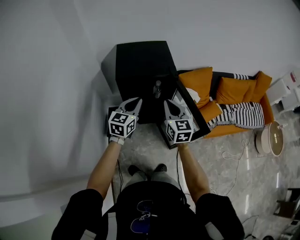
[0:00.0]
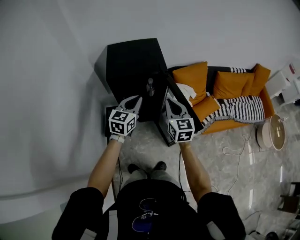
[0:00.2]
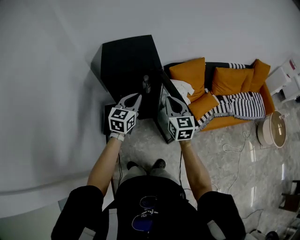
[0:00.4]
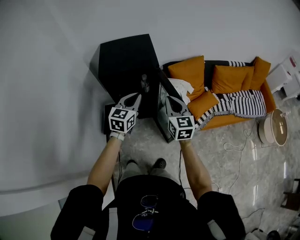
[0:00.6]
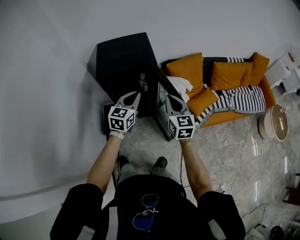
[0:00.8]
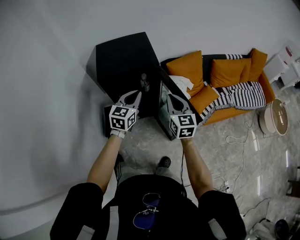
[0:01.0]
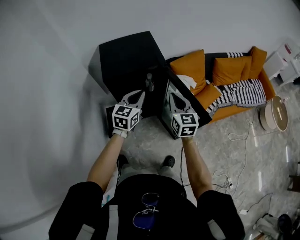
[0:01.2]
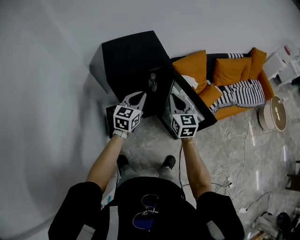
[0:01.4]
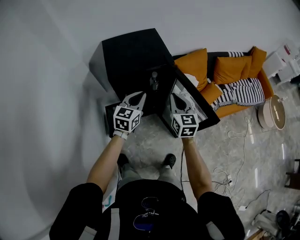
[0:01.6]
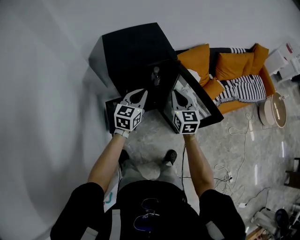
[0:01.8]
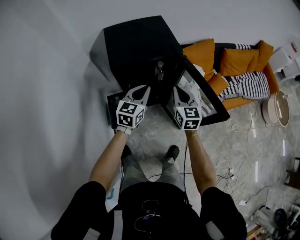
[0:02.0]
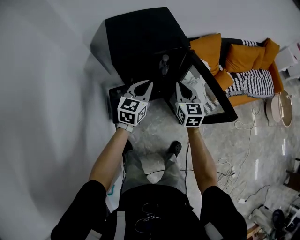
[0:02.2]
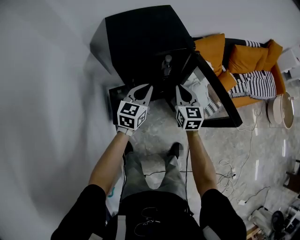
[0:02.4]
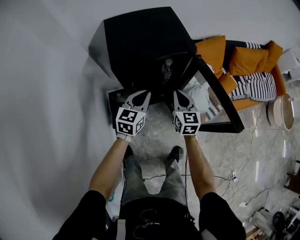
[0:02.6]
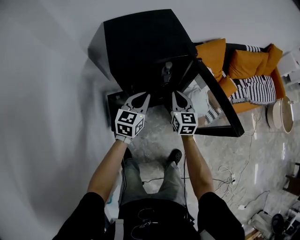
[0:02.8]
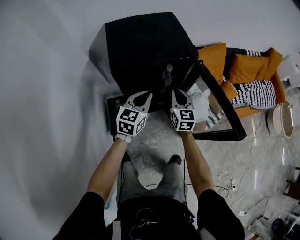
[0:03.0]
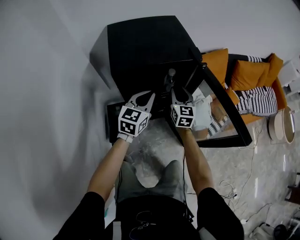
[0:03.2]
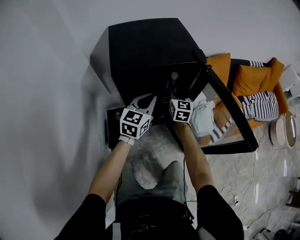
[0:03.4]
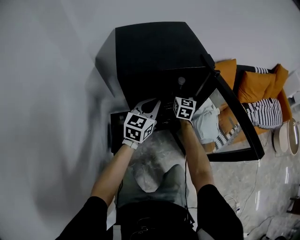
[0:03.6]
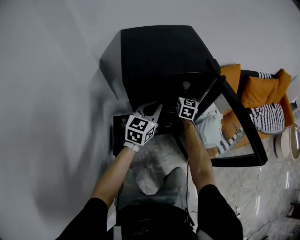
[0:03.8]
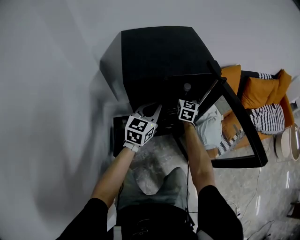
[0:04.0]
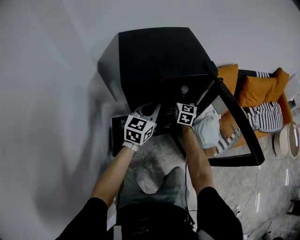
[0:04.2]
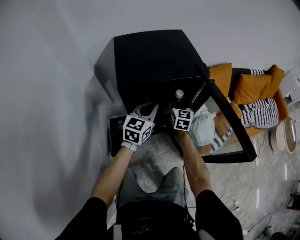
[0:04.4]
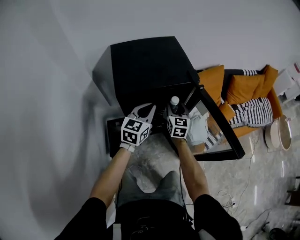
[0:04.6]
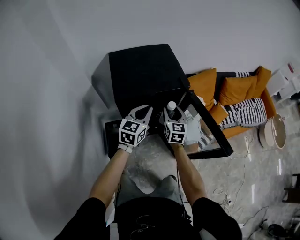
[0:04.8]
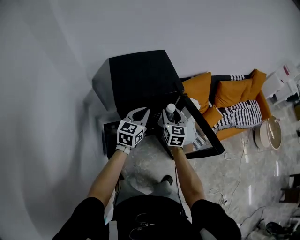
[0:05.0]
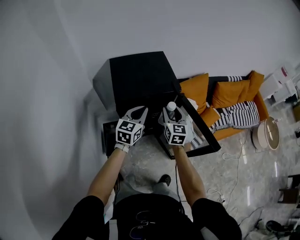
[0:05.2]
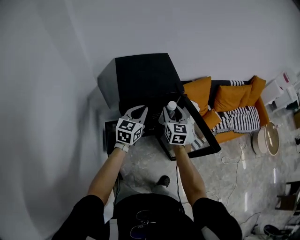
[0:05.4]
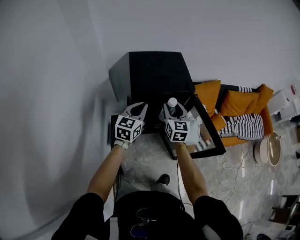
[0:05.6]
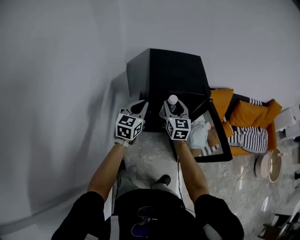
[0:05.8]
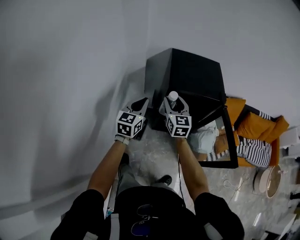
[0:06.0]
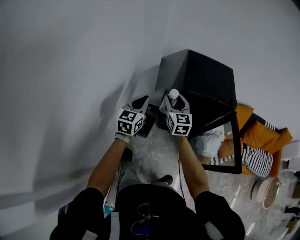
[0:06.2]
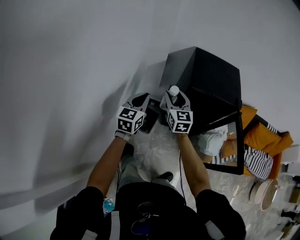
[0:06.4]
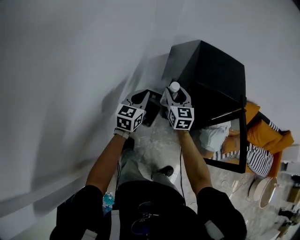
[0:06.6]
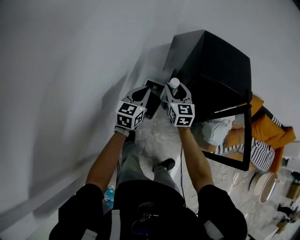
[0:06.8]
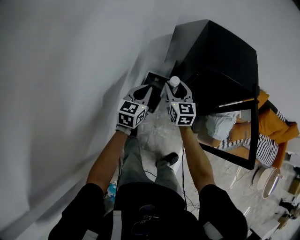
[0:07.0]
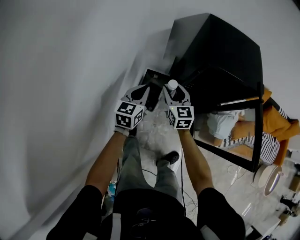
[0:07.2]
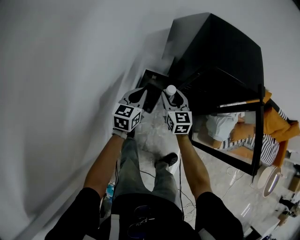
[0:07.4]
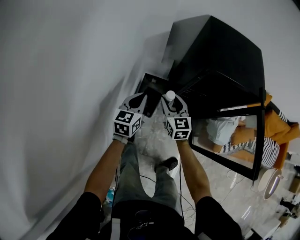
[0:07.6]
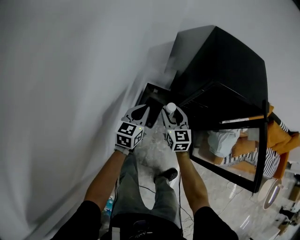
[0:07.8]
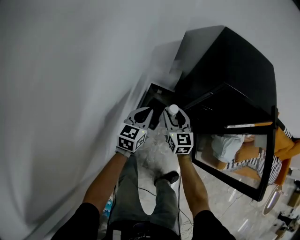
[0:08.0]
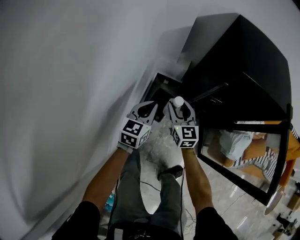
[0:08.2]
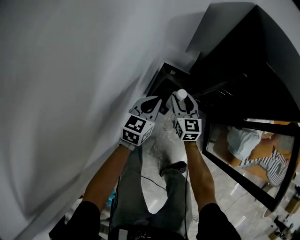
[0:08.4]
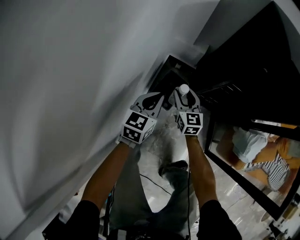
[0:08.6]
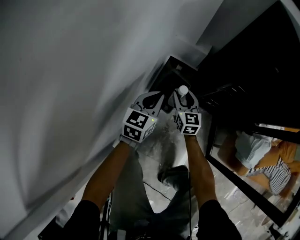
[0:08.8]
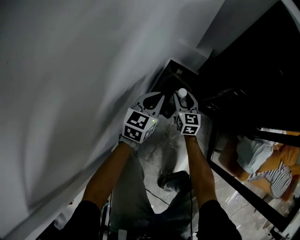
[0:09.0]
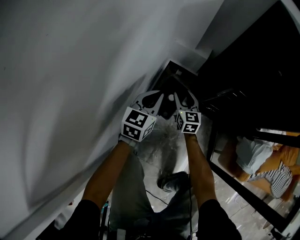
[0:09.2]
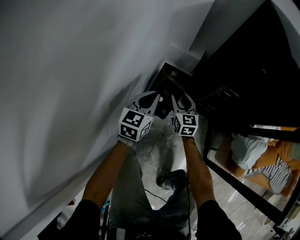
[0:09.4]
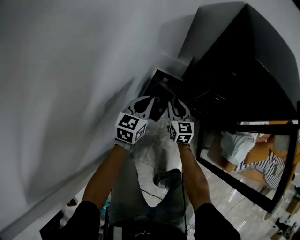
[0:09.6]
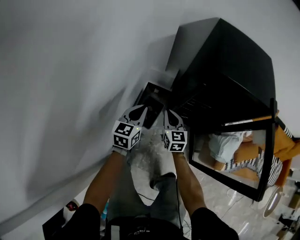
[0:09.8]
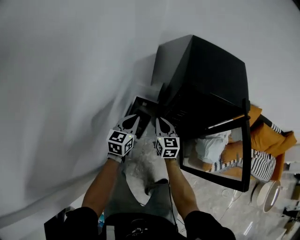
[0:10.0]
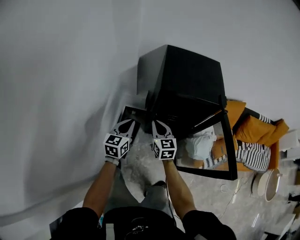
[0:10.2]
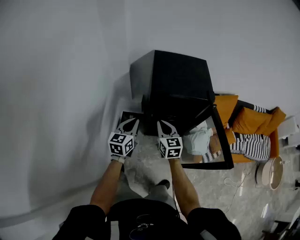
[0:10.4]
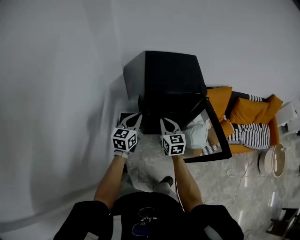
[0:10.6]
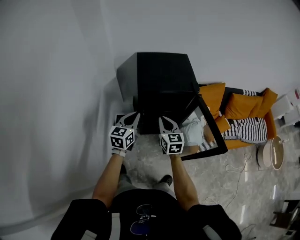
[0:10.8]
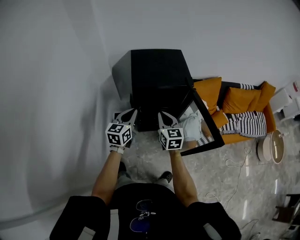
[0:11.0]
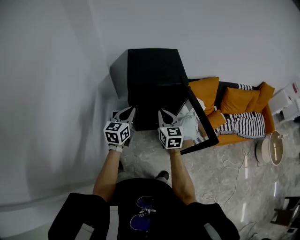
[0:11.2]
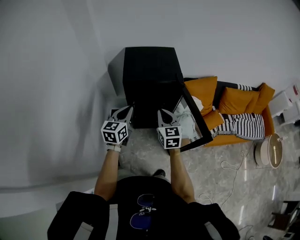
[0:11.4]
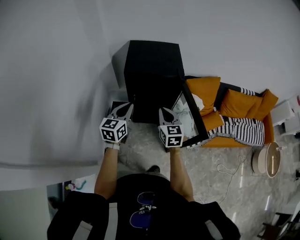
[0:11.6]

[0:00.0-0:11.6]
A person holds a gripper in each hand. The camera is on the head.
0:00.0 to 0:01.4: The right gripper travels to the right and back again, about 10 cm each way, while the left gripper goes to the right and returns, some 10 cm each way.
0:01.4 to 0:02.8: The two grippers go approximately 15 cm downward and to the left.
0:02.8 to 0:04.4: The left gripper moves forward, roughly 5 cm. Meanwhile the right gripper shifts approximately 15 cm forward and downward, and opens its fingers.
0:04.4 to 0:05.8: Both grippers move upward, backward and to the left, approximately 30 cm. The right gripper swivels about 20 degrees.
0:05.8 to 0:07.2: The two grippers go roughly 25 cm to the left and downward. The right gripper turns by about 20 degrees.
0:07.2 to 0:08.8: Both grippers travel together downward, about 35 cm.
0:08.8 to 0:10.2: Both grippers move upward, approximately 35 cm. The right gripper closes its fingers.
0:10.2 to 0:11.6: Both grippers move to the right and upward, some 25 cm.

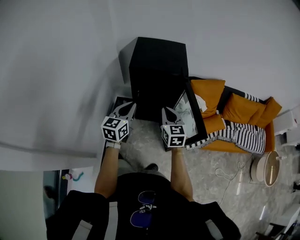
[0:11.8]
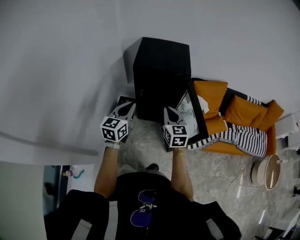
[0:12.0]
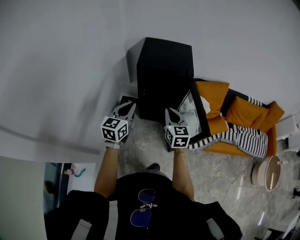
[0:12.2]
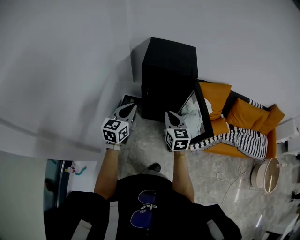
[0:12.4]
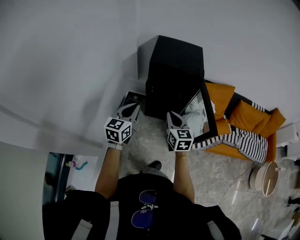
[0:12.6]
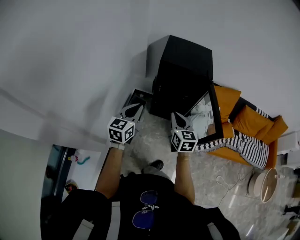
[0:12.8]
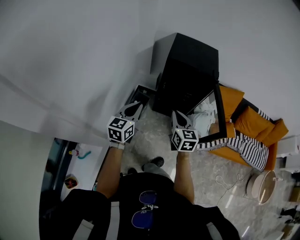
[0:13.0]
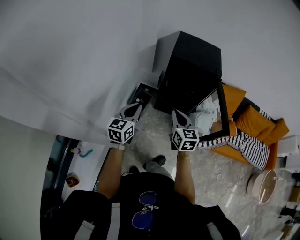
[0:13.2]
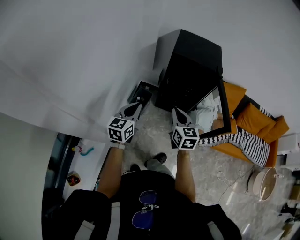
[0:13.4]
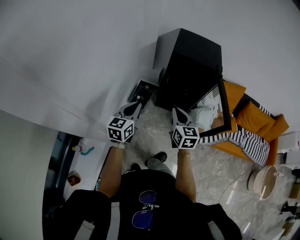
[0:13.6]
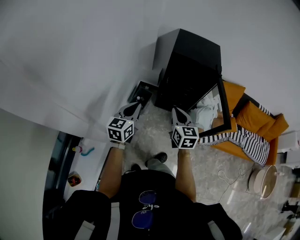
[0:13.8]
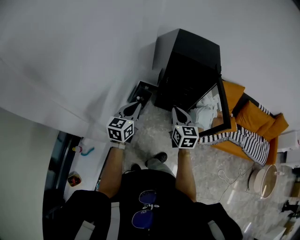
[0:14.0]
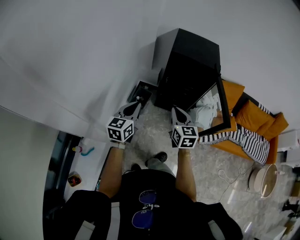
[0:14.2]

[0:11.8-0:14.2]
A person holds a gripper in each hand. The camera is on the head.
0:11.8 to 0:13.0: Both grippers move to the left and backward, about 15 cm.
0:13.0 to 0:14.2: The right gripper moves approximately 5 cm, while the left gripper shifts by approximately 5 cm.

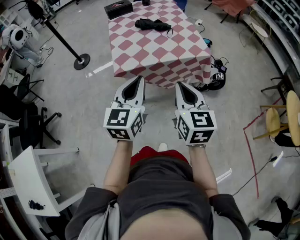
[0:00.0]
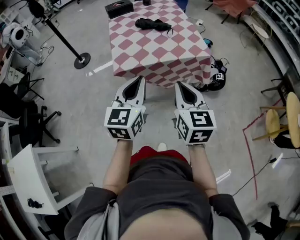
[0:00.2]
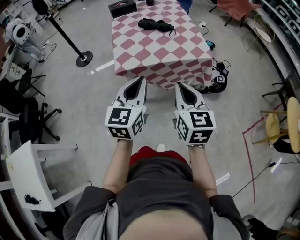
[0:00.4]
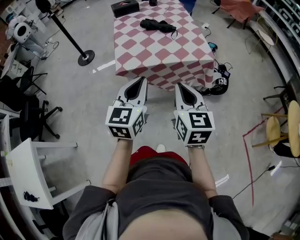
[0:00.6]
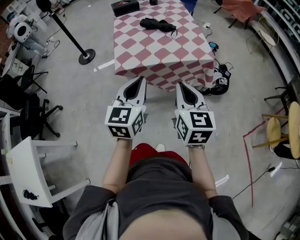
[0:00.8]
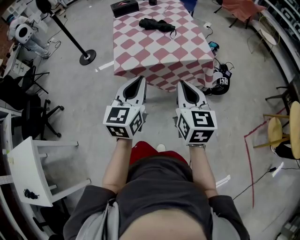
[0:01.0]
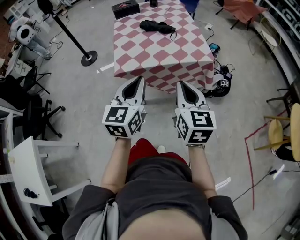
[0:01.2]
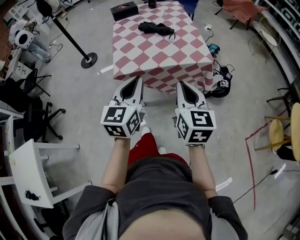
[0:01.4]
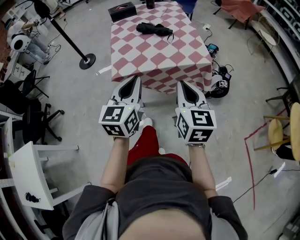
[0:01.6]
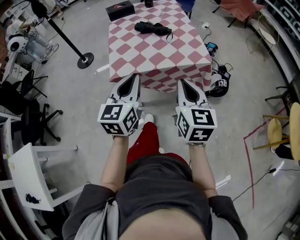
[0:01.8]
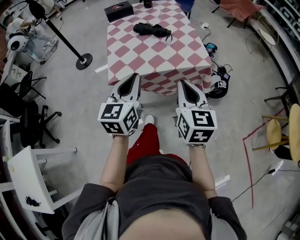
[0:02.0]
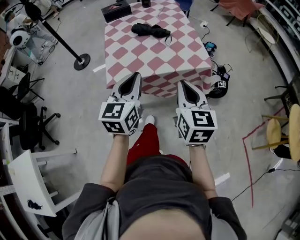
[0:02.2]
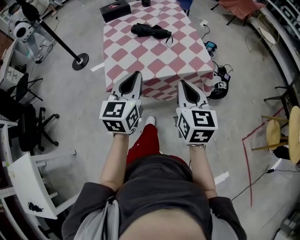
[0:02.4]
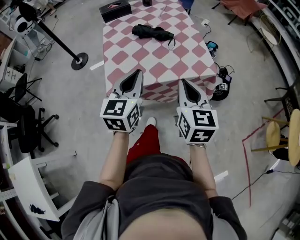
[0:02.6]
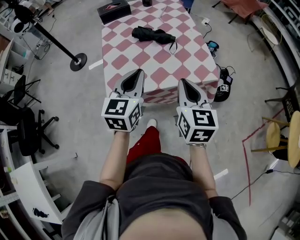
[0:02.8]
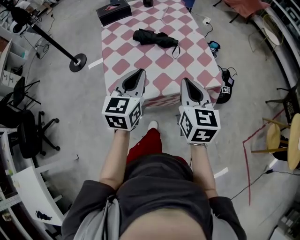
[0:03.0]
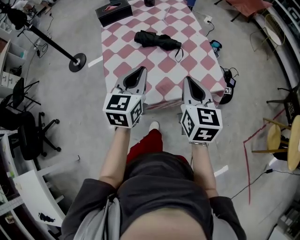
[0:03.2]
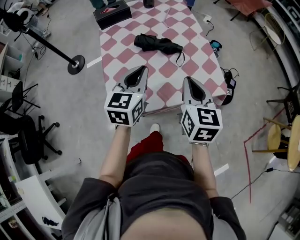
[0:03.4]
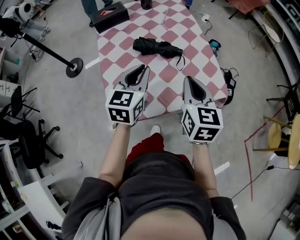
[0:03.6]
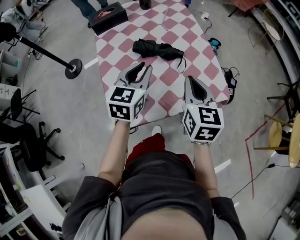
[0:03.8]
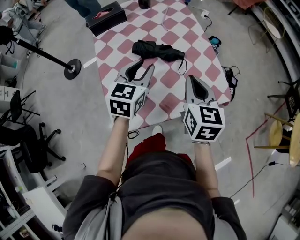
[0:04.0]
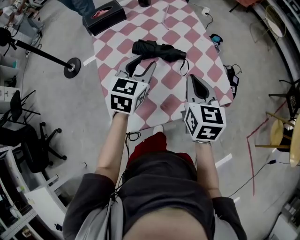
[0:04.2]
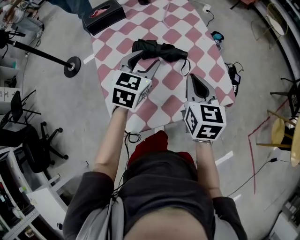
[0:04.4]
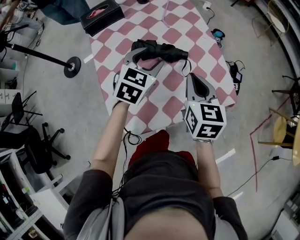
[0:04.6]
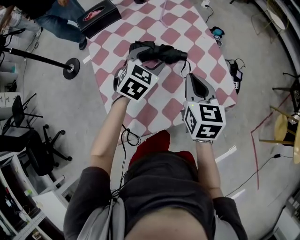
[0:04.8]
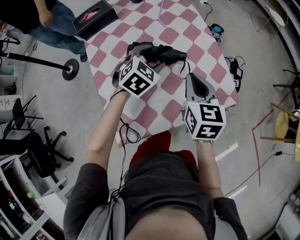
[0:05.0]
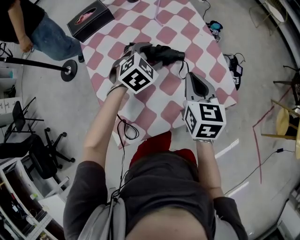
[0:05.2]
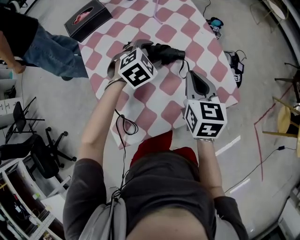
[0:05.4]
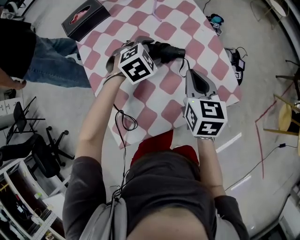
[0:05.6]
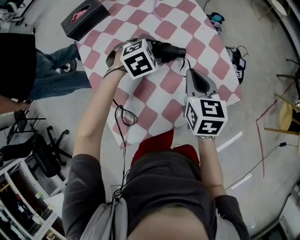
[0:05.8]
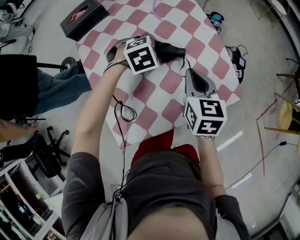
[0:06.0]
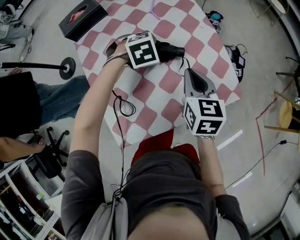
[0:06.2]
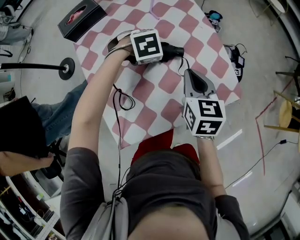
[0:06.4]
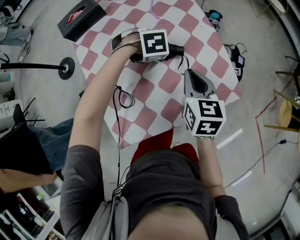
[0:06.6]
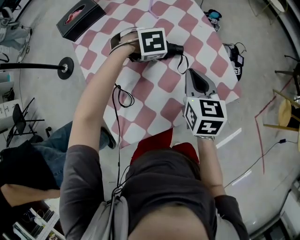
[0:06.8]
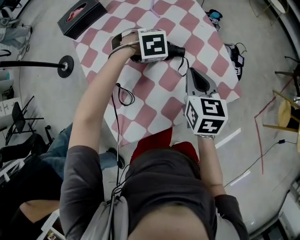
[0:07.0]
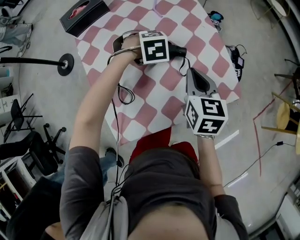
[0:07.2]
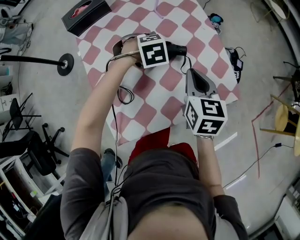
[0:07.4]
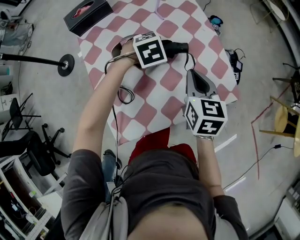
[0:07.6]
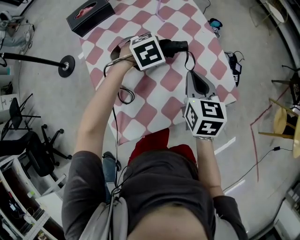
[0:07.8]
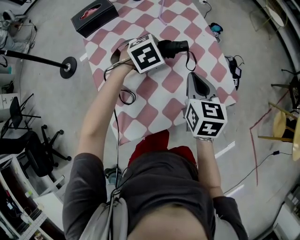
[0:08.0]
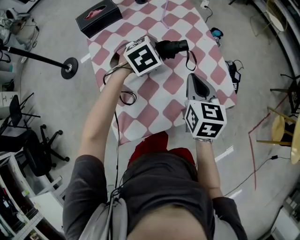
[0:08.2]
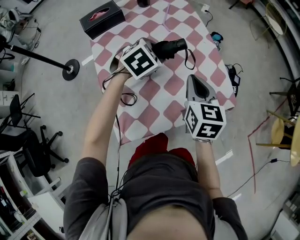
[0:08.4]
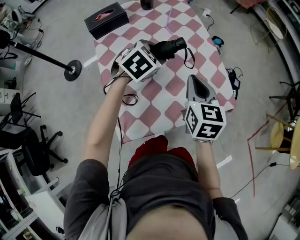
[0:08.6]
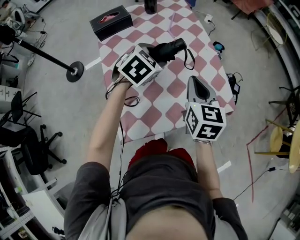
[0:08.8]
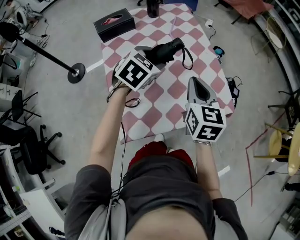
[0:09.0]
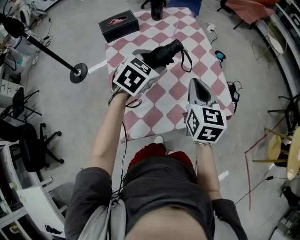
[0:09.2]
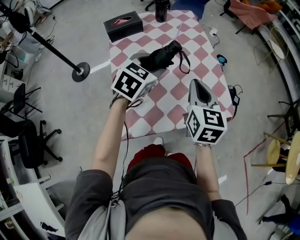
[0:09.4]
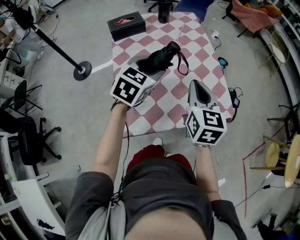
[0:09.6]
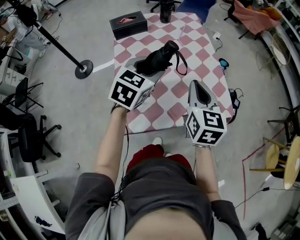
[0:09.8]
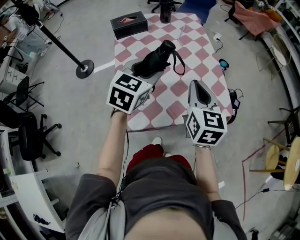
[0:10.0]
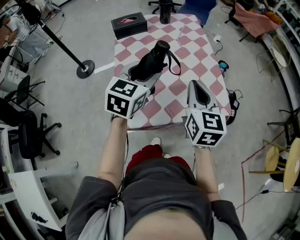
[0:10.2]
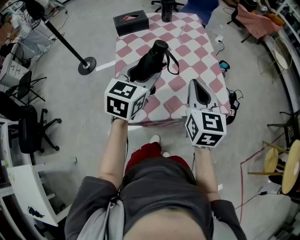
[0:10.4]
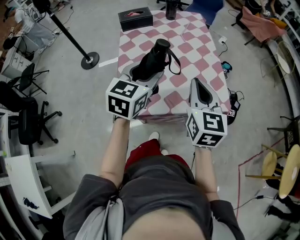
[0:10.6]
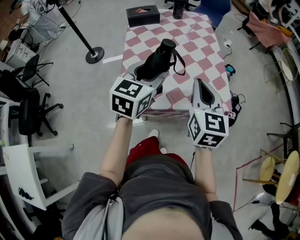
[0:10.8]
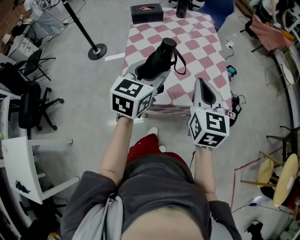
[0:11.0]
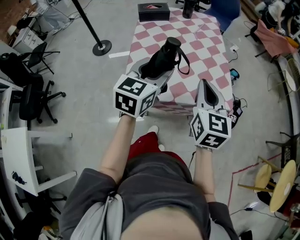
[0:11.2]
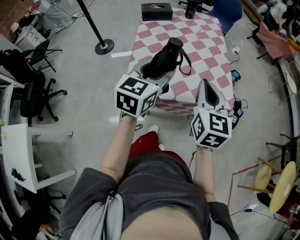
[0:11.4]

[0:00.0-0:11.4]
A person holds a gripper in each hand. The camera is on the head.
0:00.0 to 0:01.4: The right gripper moves about 5 cm.
0:01.4 to 0:02.8: Both grippers move forward, some 20 cm.
0:02.8 to 0:04.2: The two grippers go roughly 20 cm forward. The left gripper opens its fingers.
0:04.2 to 0:05.6: The left gripper heads downward and forward, covering about 15 cm, tilts its fingers approximately 30 degrees downward, and opens its fingers. Meanwhile the right gripper heads downward and forward, covering approximately 10 cm.
0:05.6 to 0:07.2: The left gripper turns by approximately 30 degrees.
0:07.2 to 0:08.6: The left gripper shifts approximately 15 cm upward, and tips its fingers upward by some 30 degrees. The right gripper moves upward, about 5 cm.
0:08.6 to 0:10.0: The left gripper heads backward and upward, covering approximately 15 cm, and changes its angle by roughly 30 degrees. Meanwhile the right gripper travels backward and upward by about 10 cm.
0:10.0 to 0:11.4: Both grippers travel together backward, about 15 cm.
